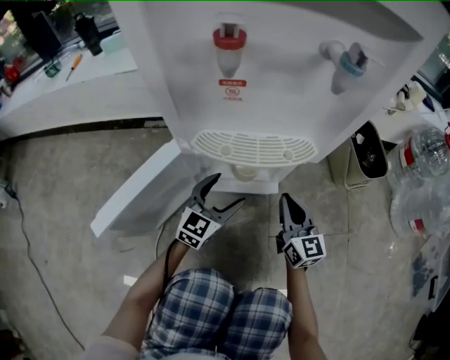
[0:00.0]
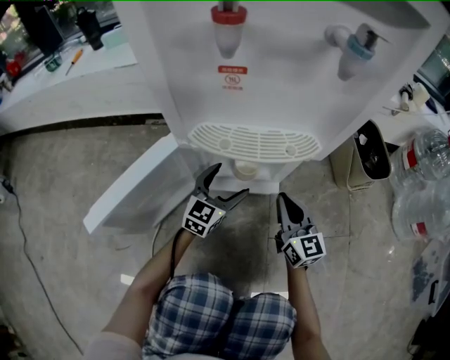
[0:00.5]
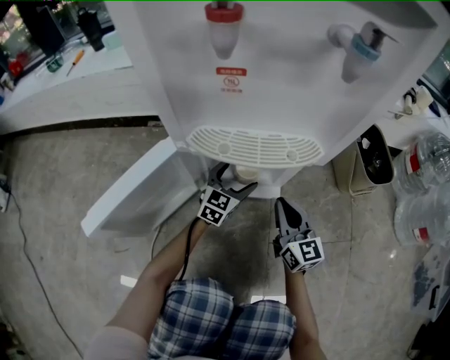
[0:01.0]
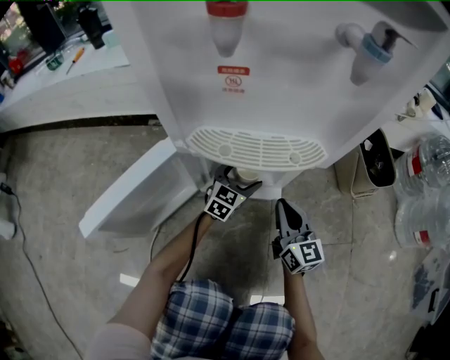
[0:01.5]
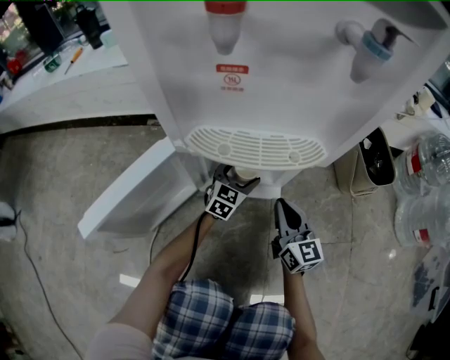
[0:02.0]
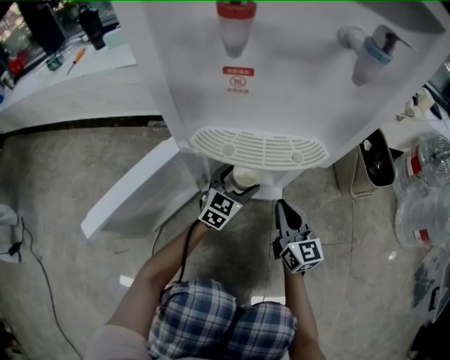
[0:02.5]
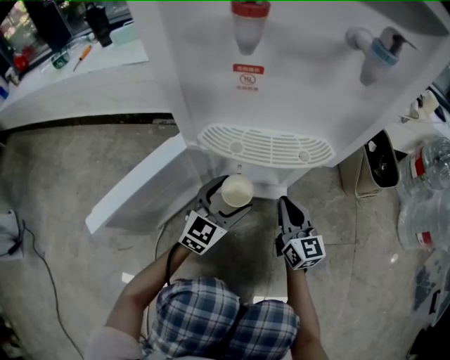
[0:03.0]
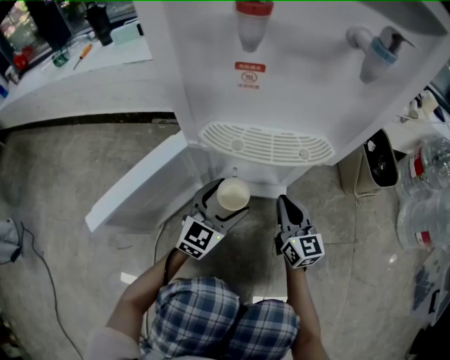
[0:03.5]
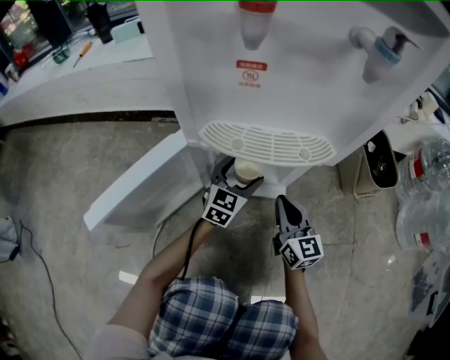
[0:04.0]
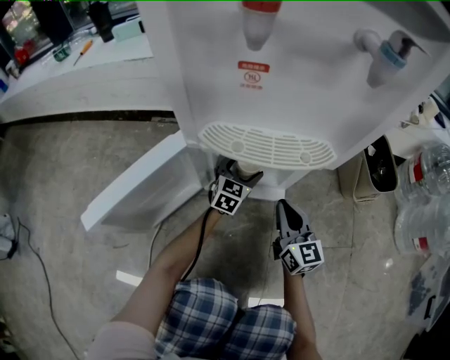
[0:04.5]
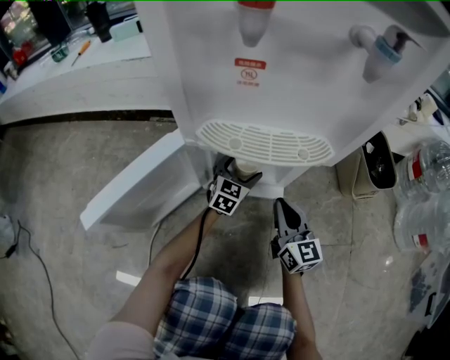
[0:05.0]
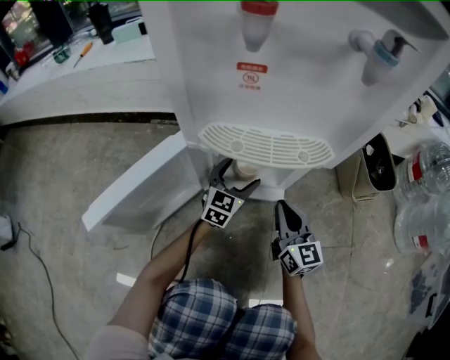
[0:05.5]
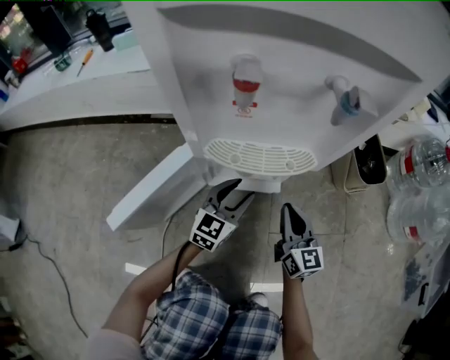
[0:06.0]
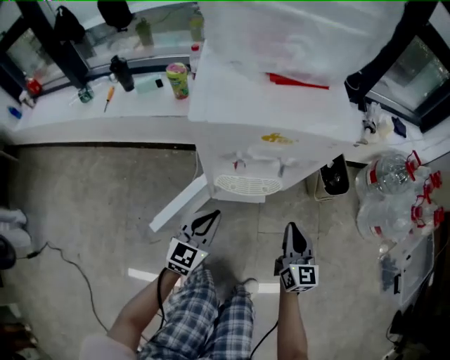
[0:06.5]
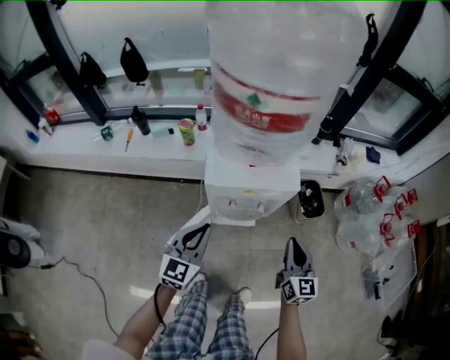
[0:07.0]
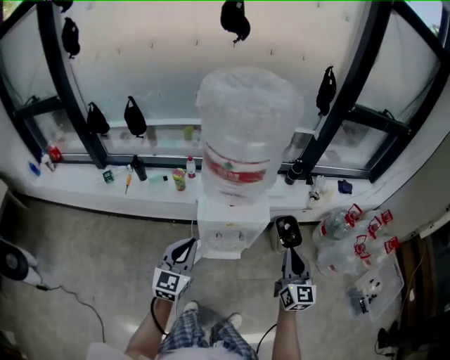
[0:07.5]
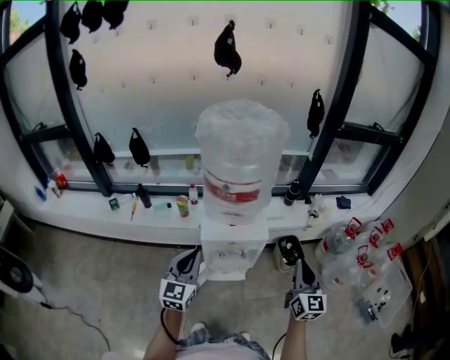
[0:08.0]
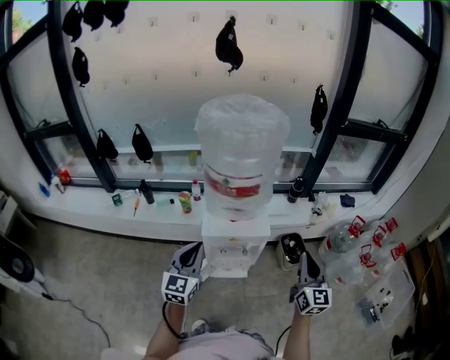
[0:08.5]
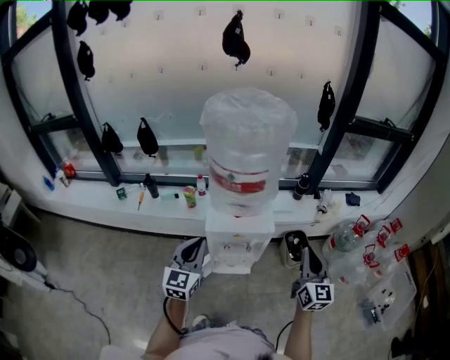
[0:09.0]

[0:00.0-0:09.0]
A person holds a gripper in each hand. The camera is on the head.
0:00.0 to 0:02.0: The left gripper heads downward and forward, covering approximately 15 cm.
0:02.0 to 0:04.5: The left gripper goes backward and returns, approximately 10 cm each way.
0:04.5 to 0:07.0: The grippers both shift upward by some 70 cm. The left gripper closes its fingers.
0:07.0 to 0:09.0: Both grippers move upward, approximately 25 cm.

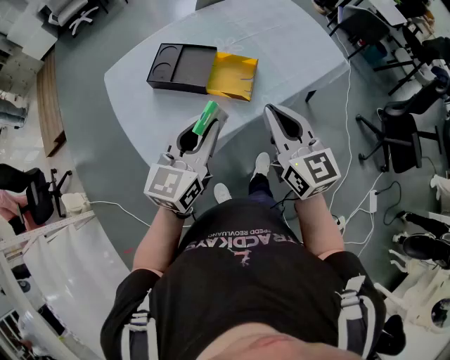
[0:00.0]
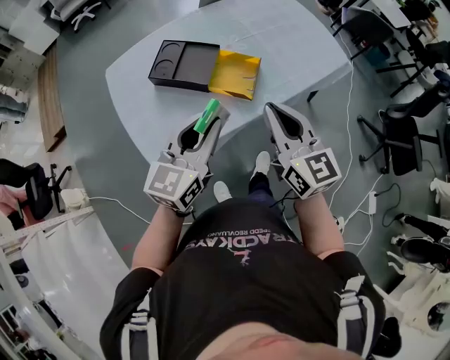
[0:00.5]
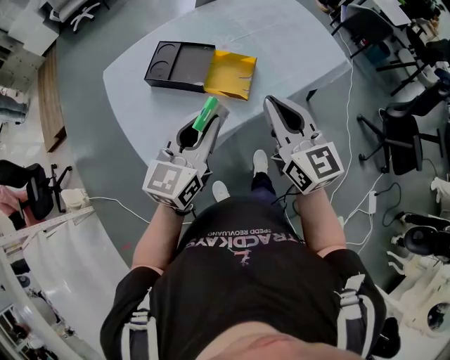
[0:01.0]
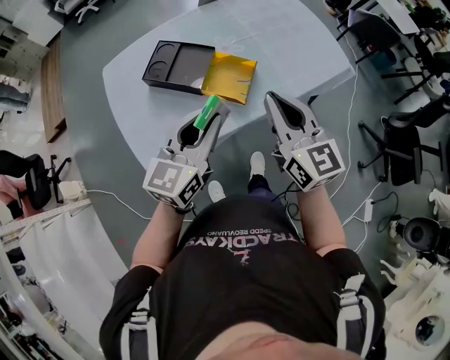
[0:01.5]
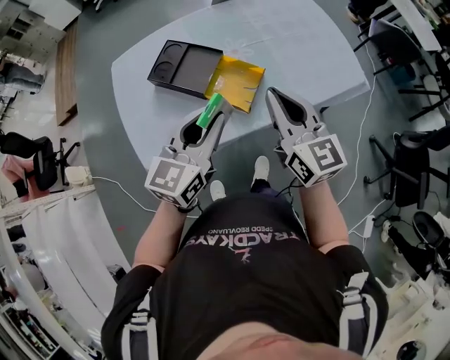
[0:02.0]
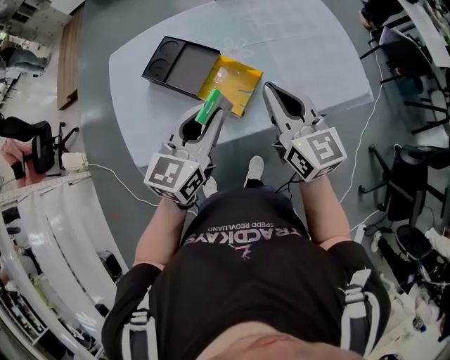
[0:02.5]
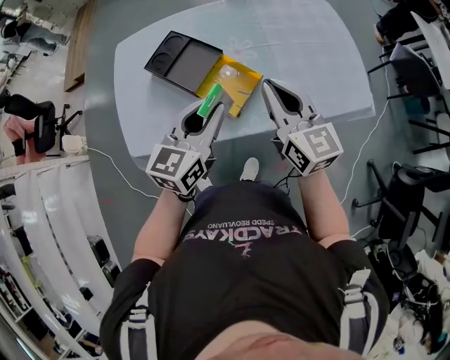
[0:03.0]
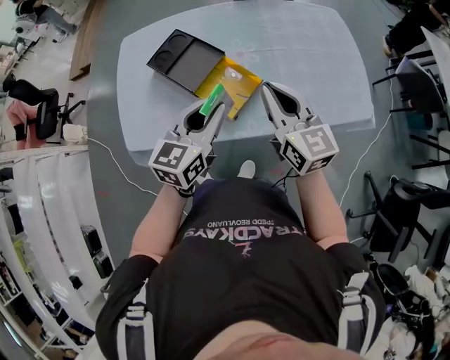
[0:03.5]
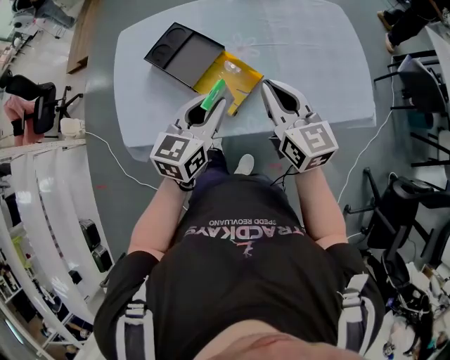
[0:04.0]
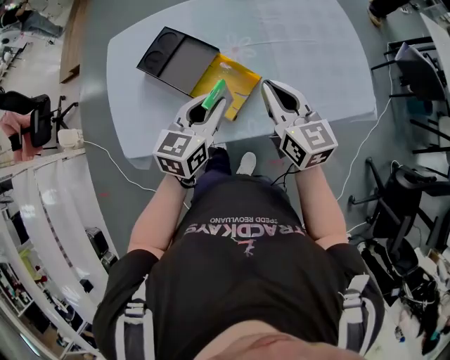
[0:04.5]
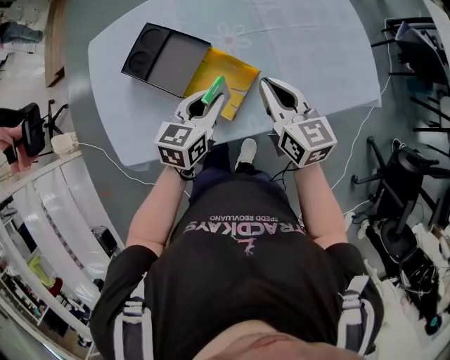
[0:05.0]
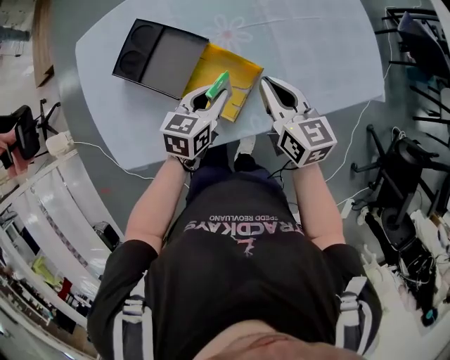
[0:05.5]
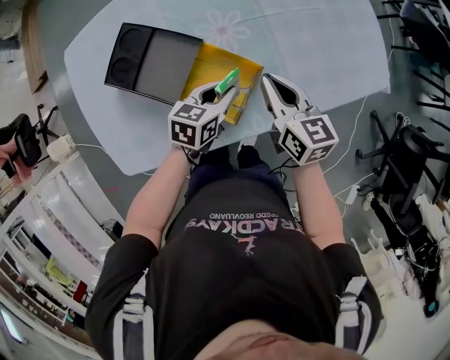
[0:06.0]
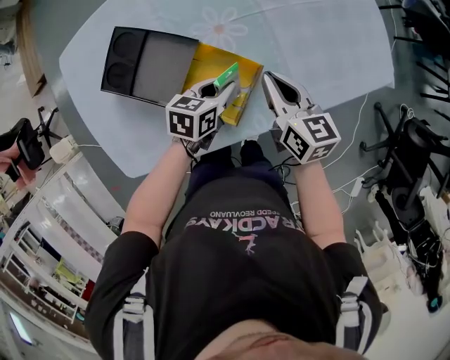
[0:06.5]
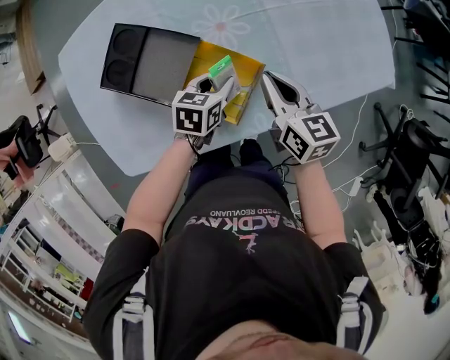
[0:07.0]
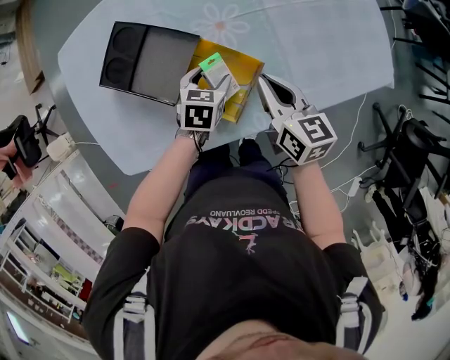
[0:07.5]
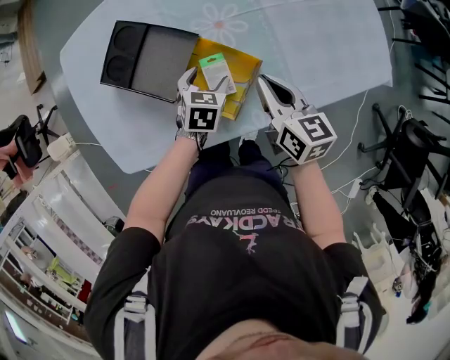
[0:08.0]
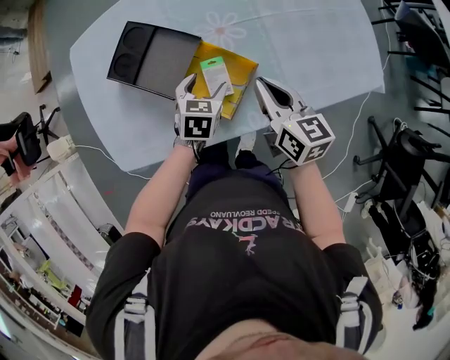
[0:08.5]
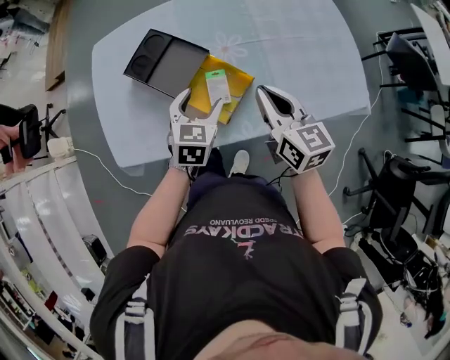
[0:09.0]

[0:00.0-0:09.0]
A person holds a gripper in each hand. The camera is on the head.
0:00.0 to 0:02.0: Both grippers move forward and to the right, approximately 10 cm.
0:02.0 to 0:04.5: Both grippers move forward, downward and to the right, about 15 cm.
0:04.5 to 0:07.0: The two grippers go approximately 20 cm downward and forward. The right gripper swivels approximately 20 degrees, while the left gripper rotates approximately 30 degrees.
0:07.0 to 0:09.0: Both grippers move upward and backward, about 15 cm. The left gripper swivels roughly 30 degrees, and opens its fingers.

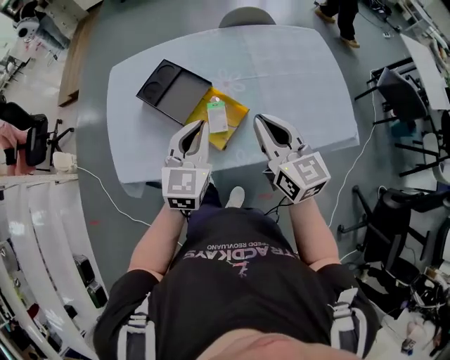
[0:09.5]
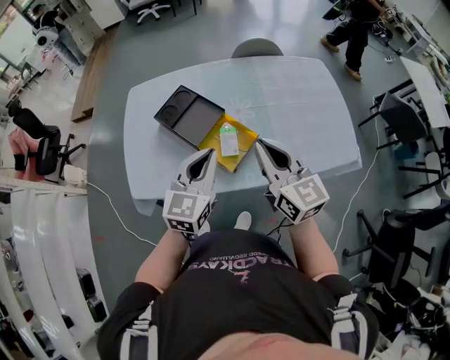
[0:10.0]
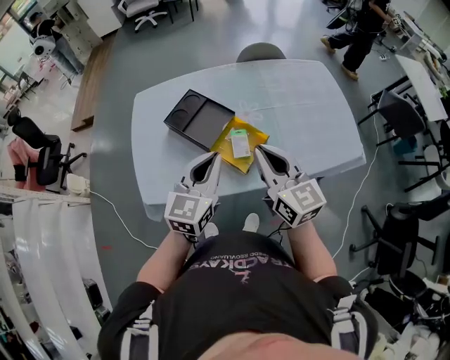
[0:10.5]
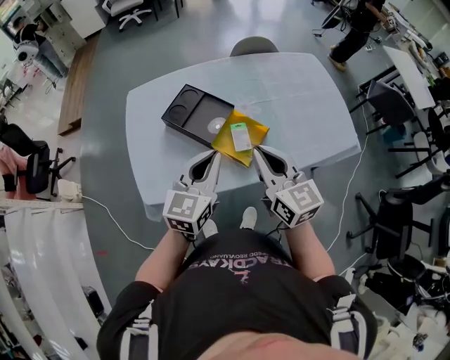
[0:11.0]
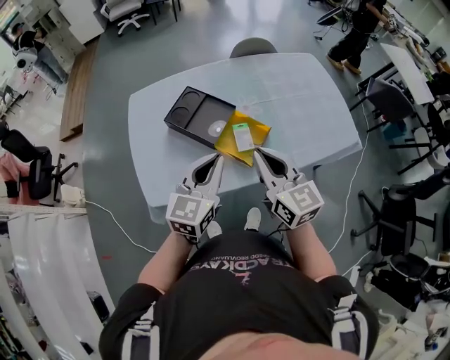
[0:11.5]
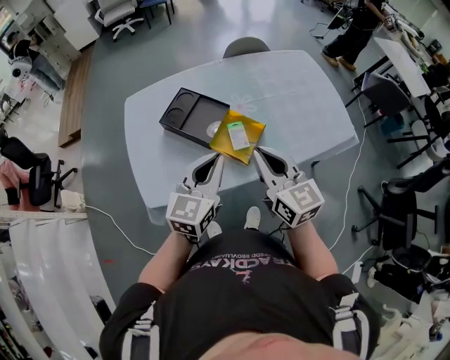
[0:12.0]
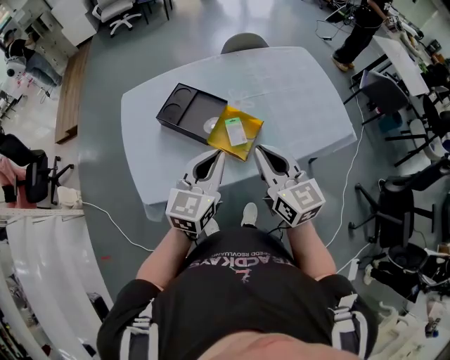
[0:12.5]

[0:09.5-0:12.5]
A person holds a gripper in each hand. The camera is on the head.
0:09.5 to 0:11.0: The grippers both shift to the left by roughly 10 cm.
0:11.0 to 0:12.5: The grippers move only a little.

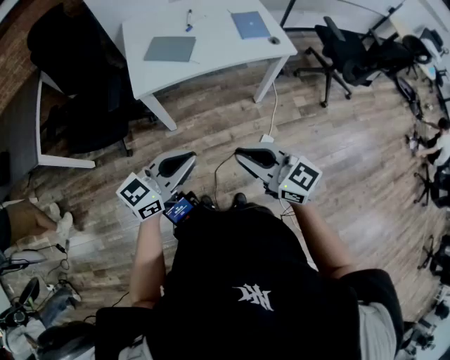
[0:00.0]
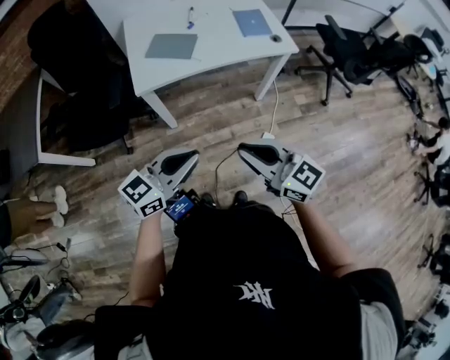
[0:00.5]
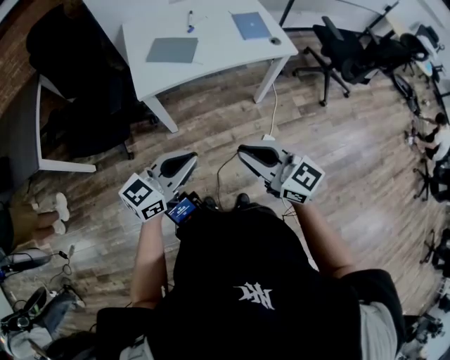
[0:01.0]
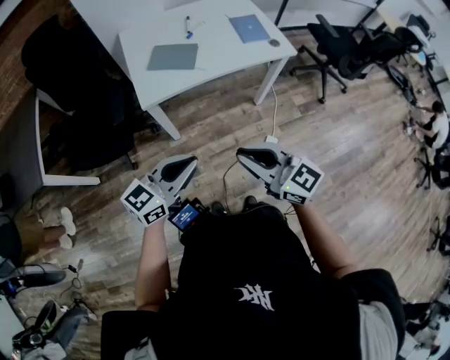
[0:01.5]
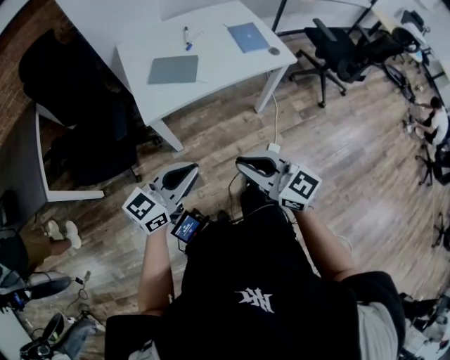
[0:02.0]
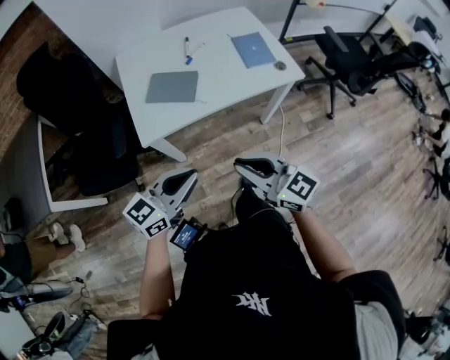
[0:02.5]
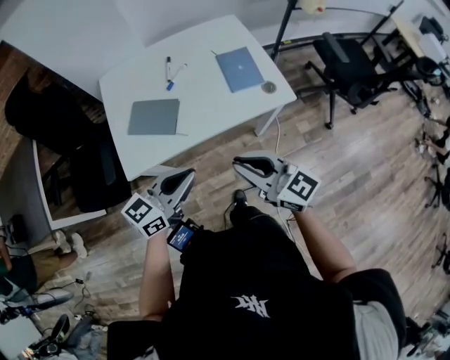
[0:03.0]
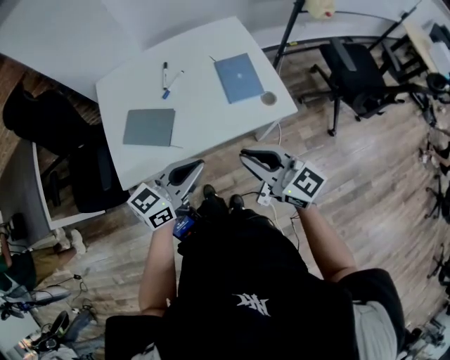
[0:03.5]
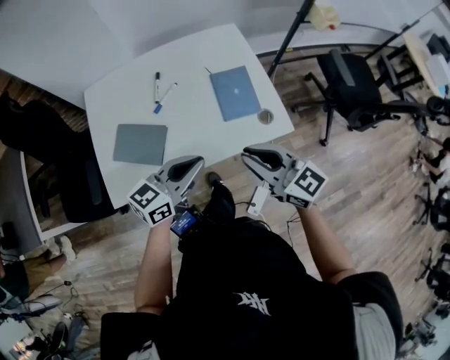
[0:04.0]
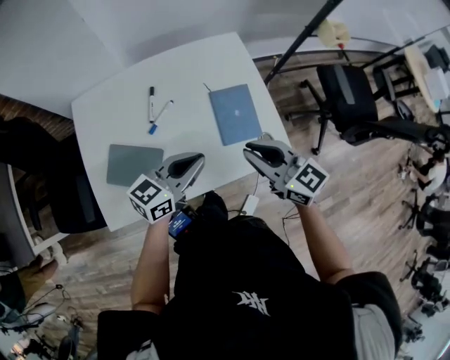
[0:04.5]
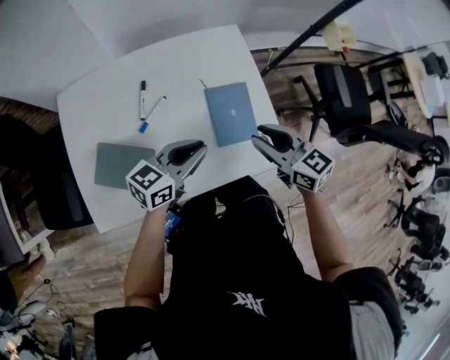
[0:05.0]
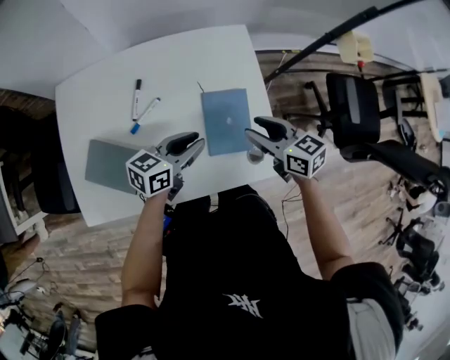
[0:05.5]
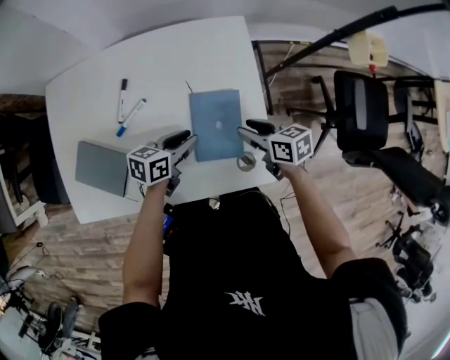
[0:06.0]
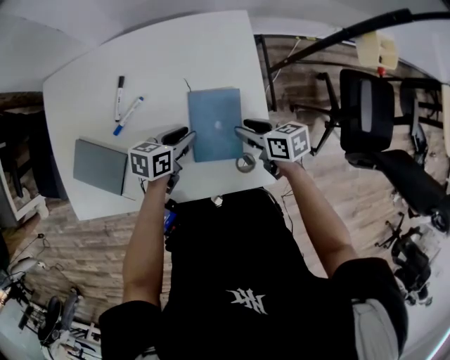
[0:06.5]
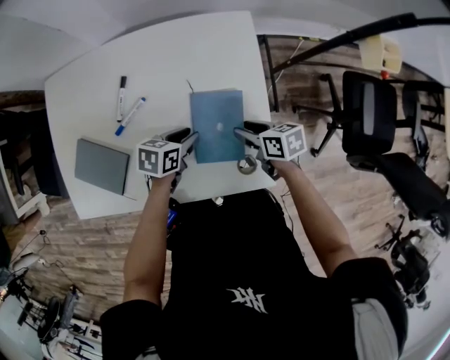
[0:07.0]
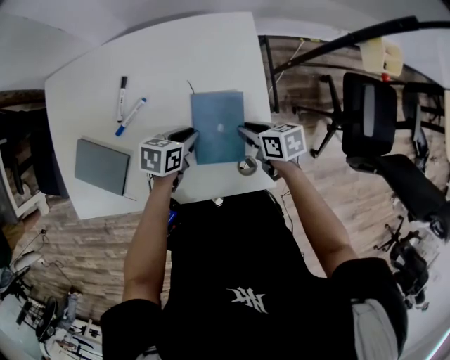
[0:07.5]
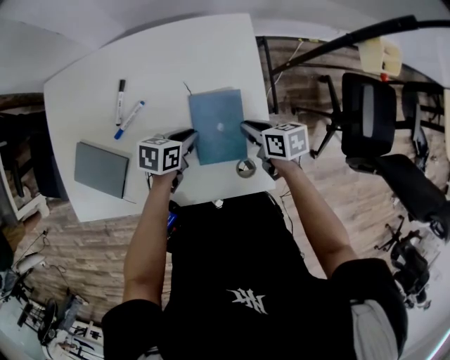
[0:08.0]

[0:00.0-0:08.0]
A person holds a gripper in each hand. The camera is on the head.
0:00.0 to 0:02.0: The right gripper travels to the left by approximately 5 cm. The left gripper heads to the left and forward, covering some 10 cm.
0:02.0 to 0:04.0: The pair of grippers is taken forward and to the right, some 40 cm.
0:04.0 to 0:06.0: The right gripper is displaced forward, downward and to the right by roughly 35 cm, points its fingers about 30 degrees further downward, and opens its fingers. Meanwhile the left gripper heads forward and downward, covering roughly 30 cm, swivels roughly 30 degrees, and opens up.
0:06.0 to 0:08.0: The right gripper closes its fingers.
